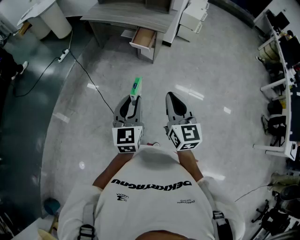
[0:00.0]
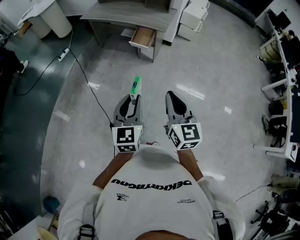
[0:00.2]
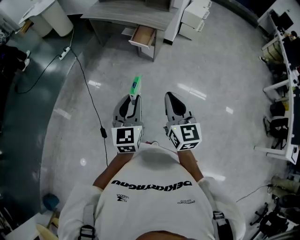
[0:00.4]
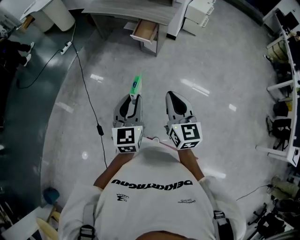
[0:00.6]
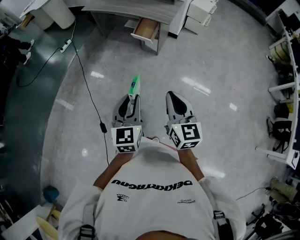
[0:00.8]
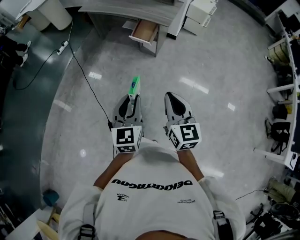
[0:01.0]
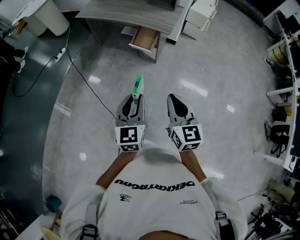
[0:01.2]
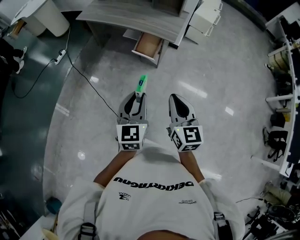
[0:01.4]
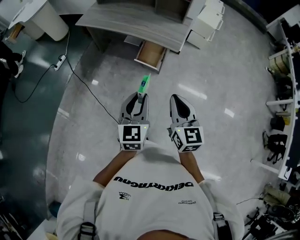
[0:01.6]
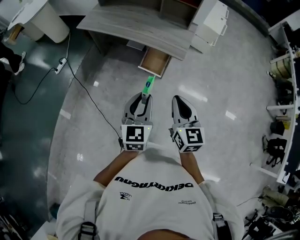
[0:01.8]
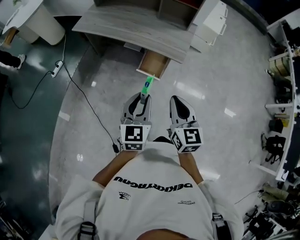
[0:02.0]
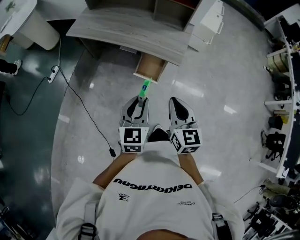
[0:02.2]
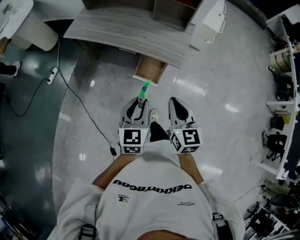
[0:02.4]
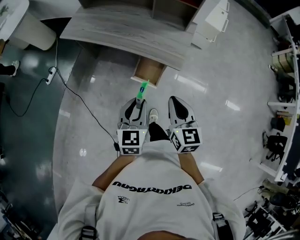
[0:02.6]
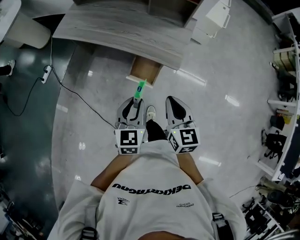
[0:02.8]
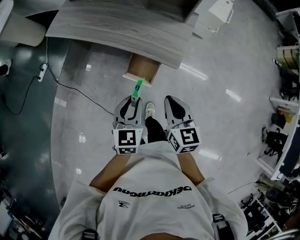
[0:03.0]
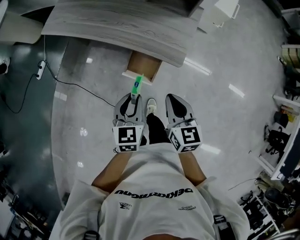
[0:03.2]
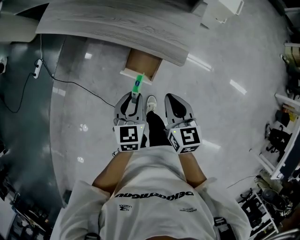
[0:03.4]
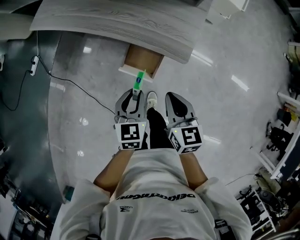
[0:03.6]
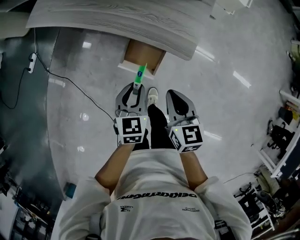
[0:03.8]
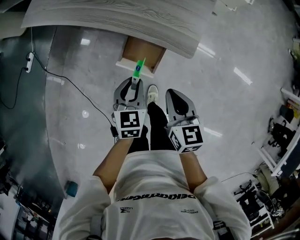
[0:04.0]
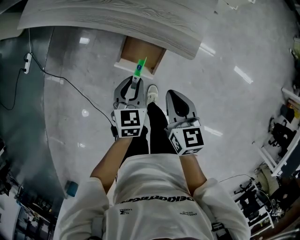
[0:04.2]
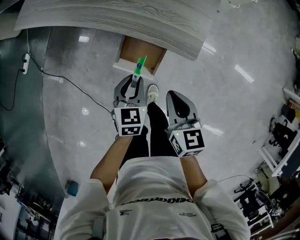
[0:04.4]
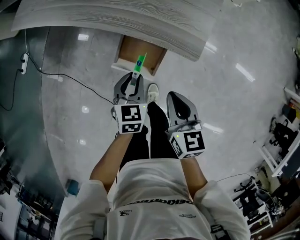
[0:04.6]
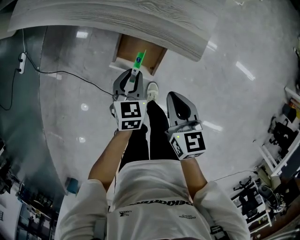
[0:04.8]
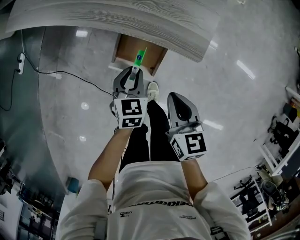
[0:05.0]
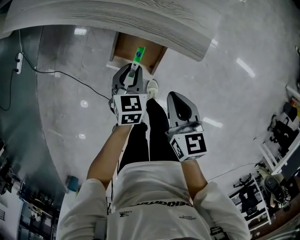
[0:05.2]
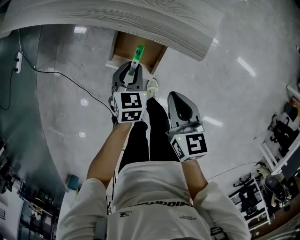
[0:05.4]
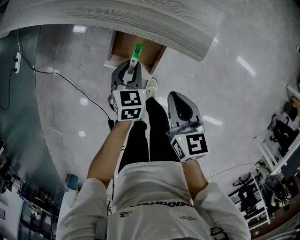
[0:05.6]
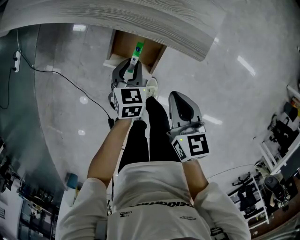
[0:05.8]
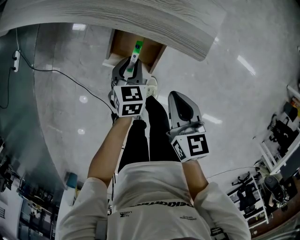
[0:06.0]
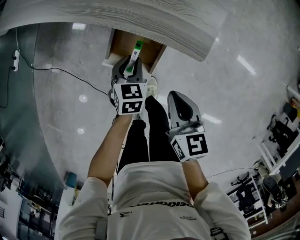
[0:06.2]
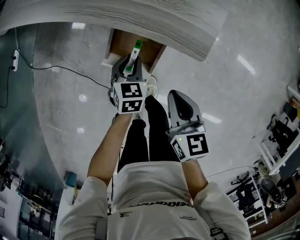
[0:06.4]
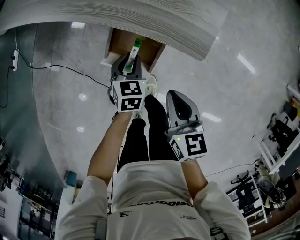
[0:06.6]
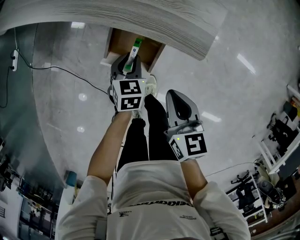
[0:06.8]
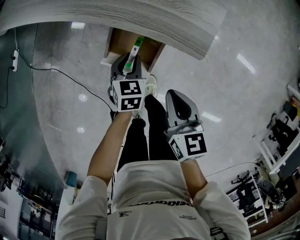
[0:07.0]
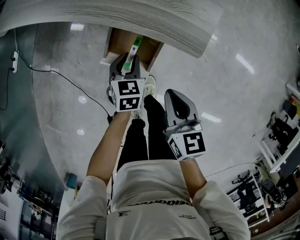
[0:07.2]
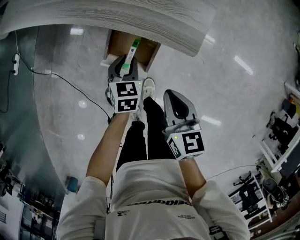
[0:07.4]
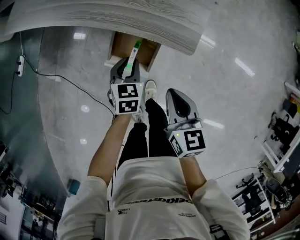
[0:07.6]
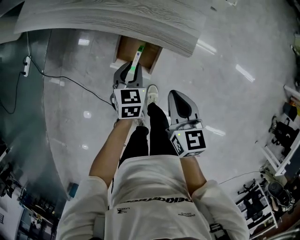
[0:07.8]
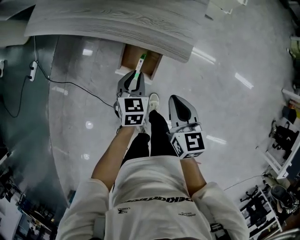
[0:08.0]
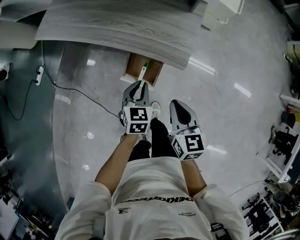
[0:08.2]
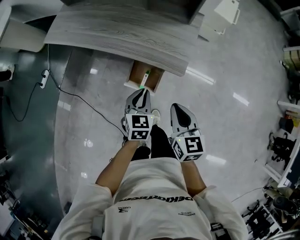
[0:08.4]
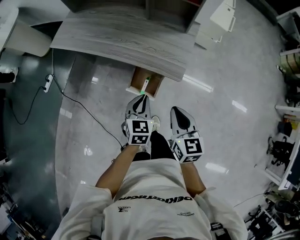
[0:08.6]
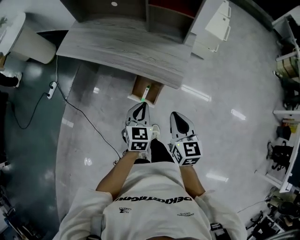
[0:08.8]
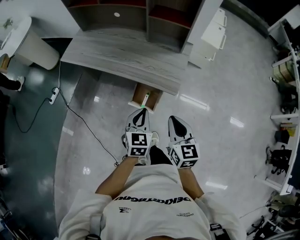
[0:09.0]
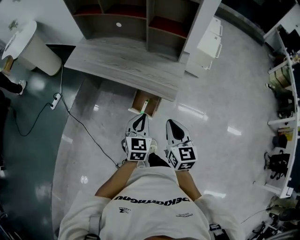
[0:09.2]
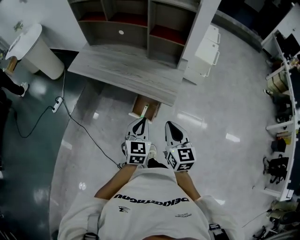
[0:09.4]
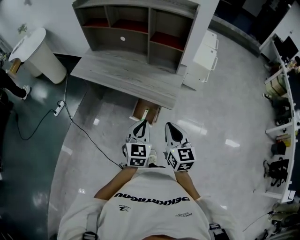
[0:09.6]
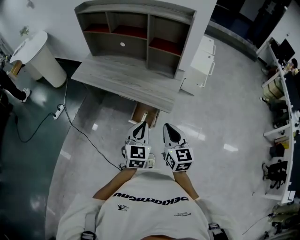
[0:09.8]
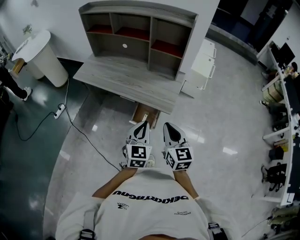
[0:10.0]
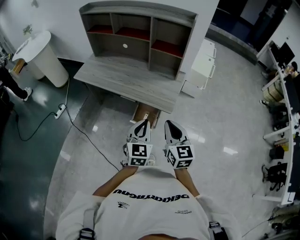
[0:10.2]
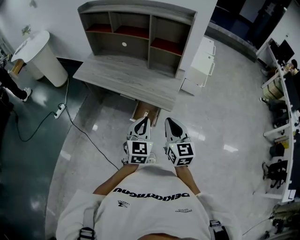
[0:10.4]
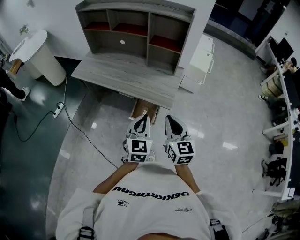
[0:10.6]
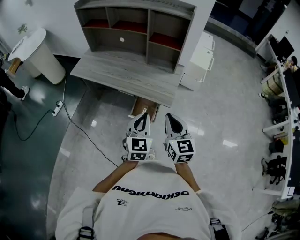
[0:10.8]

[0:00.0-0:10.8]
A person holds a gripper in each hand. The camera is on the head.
0:00.0 to 0:01.6: The two grippers go about 30 cm forward.
0:01.6 to 0:03.0: Both grippers travel together forward and downward, roughly 30 cm.
0:03.0 to 0:04.6: Both grippers travel together downward, approximately 20 cm.
0:04.6 to 0:06.2: The left gripper heads downward, covering approximately 10 cm.
0:06.2 to 0:07.8: Both grippers travel together upward, approximately 10 cm.
0:07.8 to 0:09.2: Both grippers travel together upward, approximately 25 cm.
0:09.2 to 0:10.8: Both grippers travel together upward, some 10 cm.

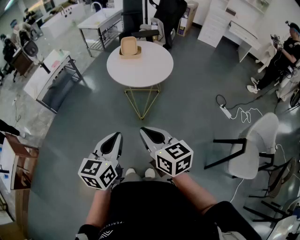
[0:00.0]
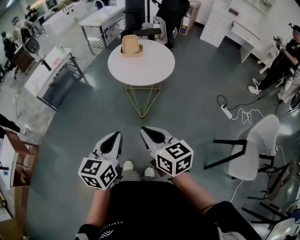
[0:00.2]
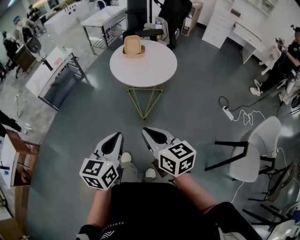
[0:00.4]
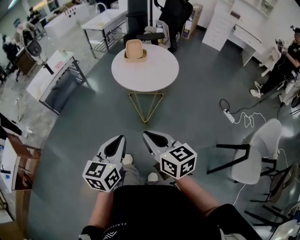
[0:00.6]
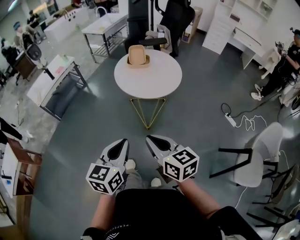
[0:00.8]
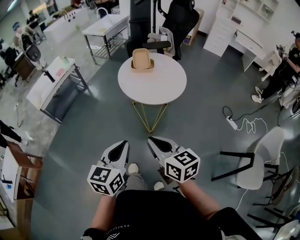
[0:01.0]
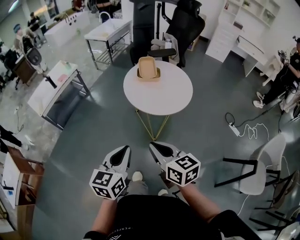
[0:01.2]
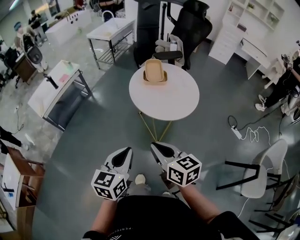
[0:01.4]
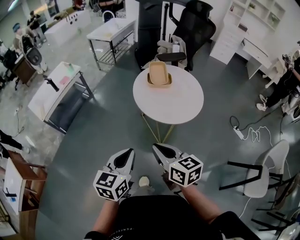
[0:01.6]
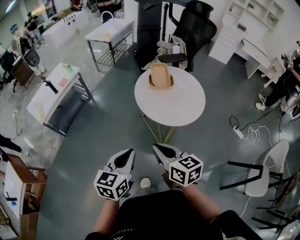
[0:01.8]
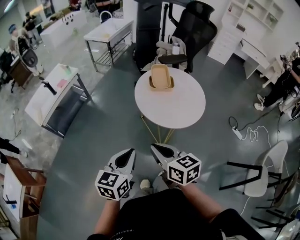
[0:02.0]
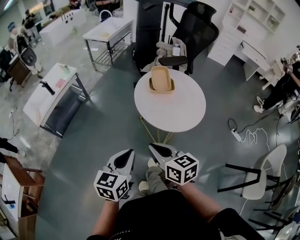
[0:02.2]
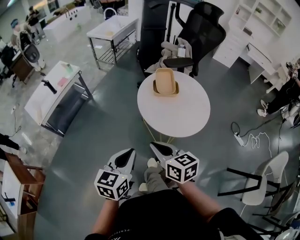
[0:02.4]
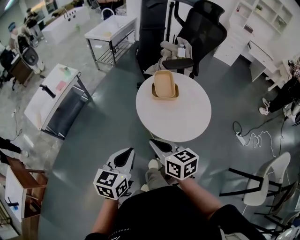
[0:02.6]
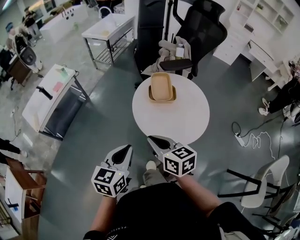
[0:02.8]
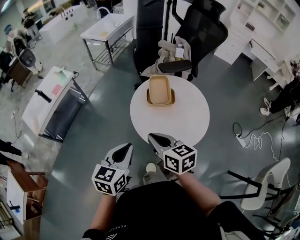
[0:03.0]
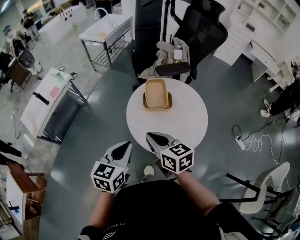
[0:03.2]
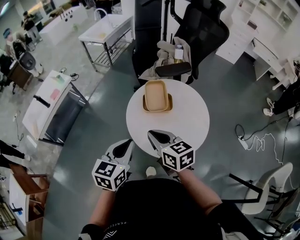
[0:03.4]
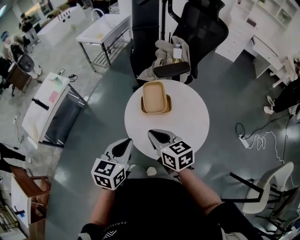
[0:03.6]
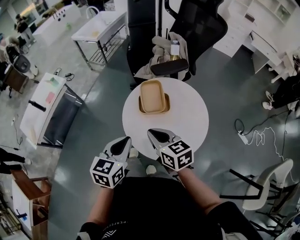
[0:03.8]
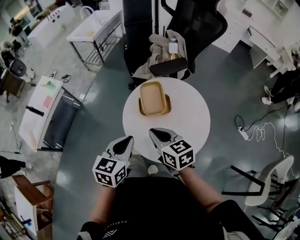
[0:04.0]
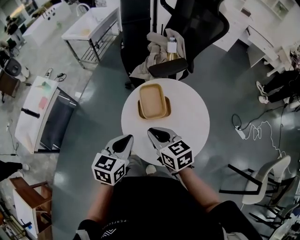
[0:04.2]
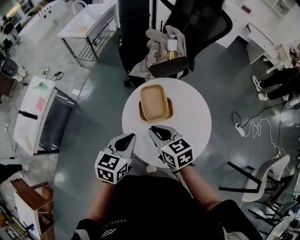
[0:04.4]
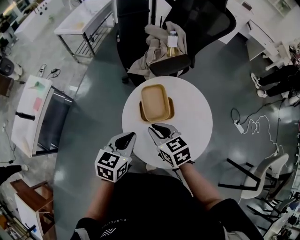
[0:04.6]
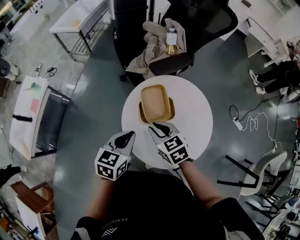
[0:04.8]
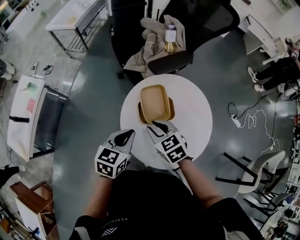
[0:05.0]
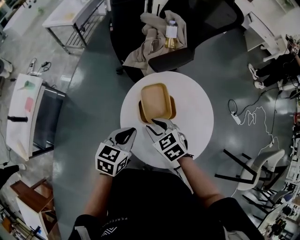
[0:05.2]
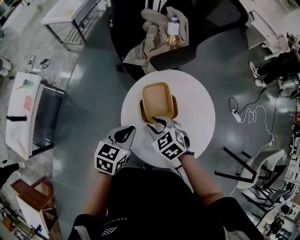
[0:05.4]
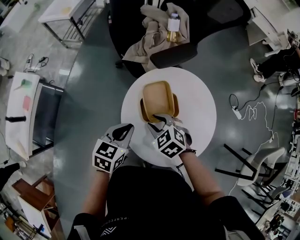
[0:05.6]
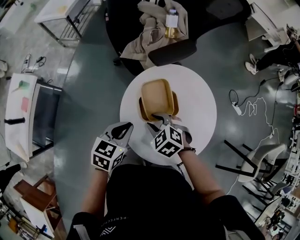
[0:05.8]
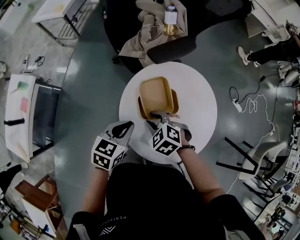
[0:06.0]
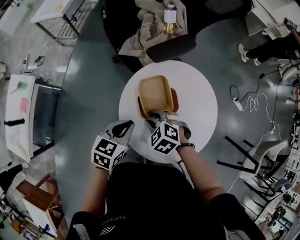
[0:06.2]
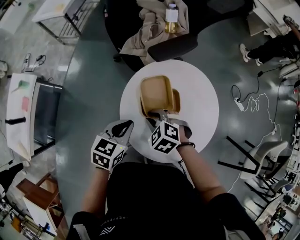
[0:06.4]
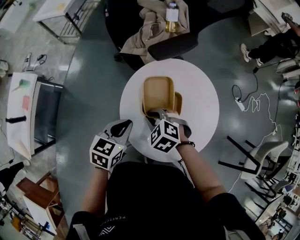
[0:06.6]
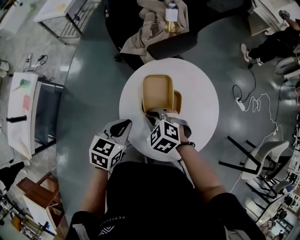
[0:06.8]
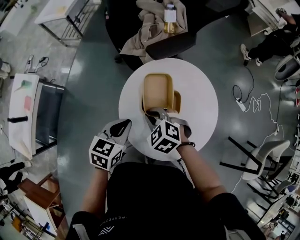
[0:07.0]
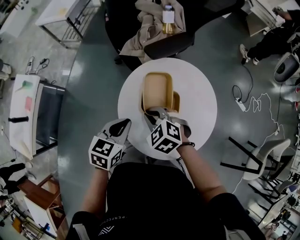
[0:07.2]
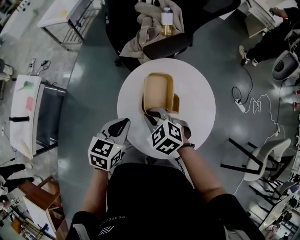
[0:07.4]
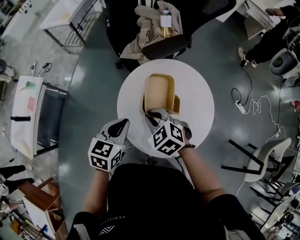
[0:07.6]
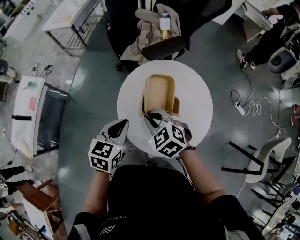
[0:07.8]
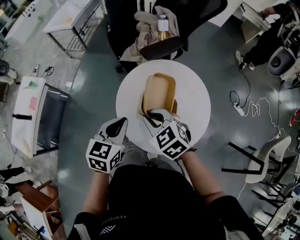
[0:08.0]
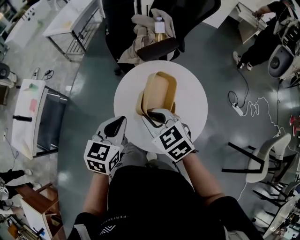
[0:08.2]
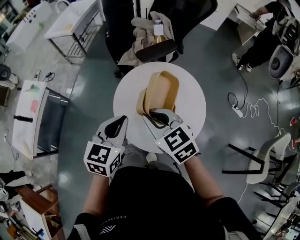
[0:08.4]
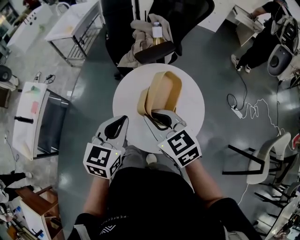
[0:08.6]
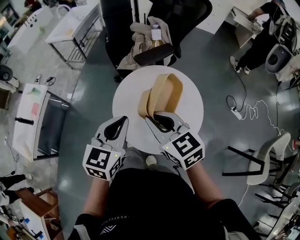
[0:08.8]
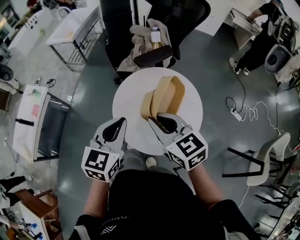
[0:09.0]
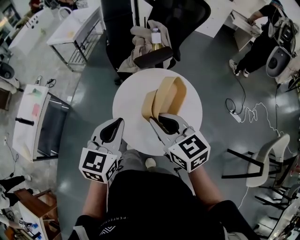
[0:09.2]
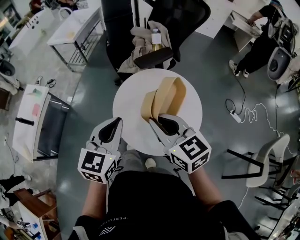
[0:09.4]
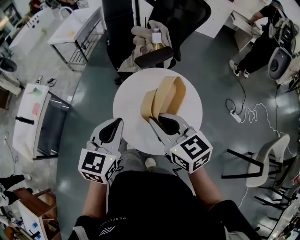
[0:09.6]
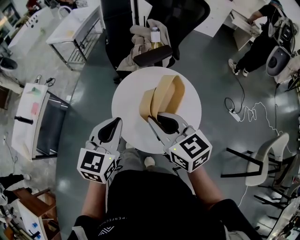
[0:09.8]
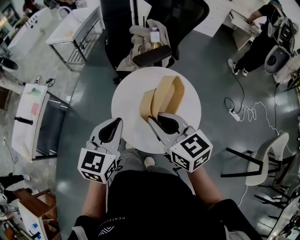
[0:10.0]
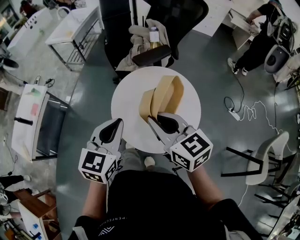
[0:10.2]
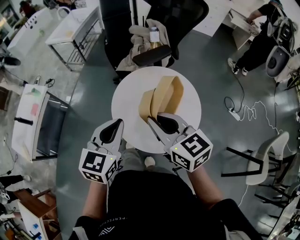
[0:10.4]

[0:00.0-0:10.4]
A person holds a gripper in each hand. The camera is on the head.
0:00.0 to 0:01.4: The two grippers go about 20 cm forward and to the left.
0:01.4 to 0:03.0: Both grippers travel together forward, some 25 cm.
0:03.0 to 0:04.4: The two grippers go approximately 20 cm forward.
0:04.4 to 0:06.0: The grippers both shift downward and forward by roughly 15 cm. The right gripper angles its fingers downward, by approximately 30 degrees, and opens.
0:06.0 to 0:07.4: The right gripper heads upward, covering about 5 cm, and closes.
0:07.4 to 0:09.0: The two grippers go approximately 20 cm upward and backward. The left gripper swivels about 20 degrees. Meanwhile the right gripper tips its fingers upward by roughly 30 degrees.
0:09.0 to 0:10.4: The grippers stay close to where they were, moving slightly.

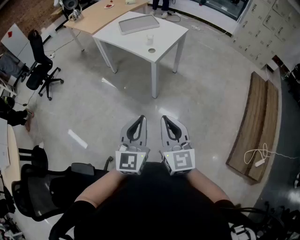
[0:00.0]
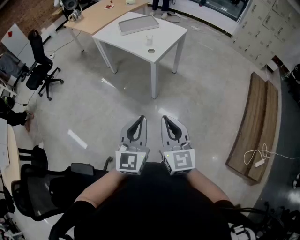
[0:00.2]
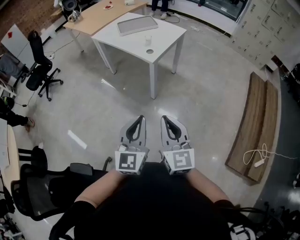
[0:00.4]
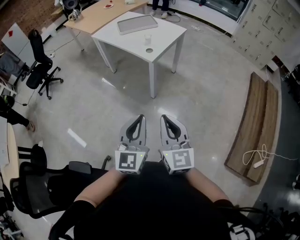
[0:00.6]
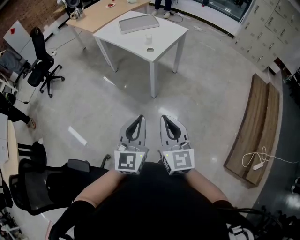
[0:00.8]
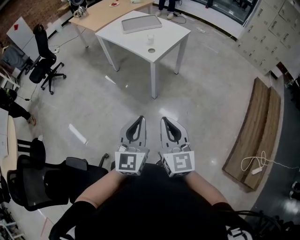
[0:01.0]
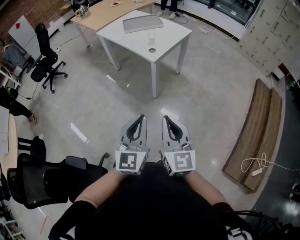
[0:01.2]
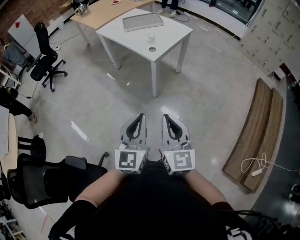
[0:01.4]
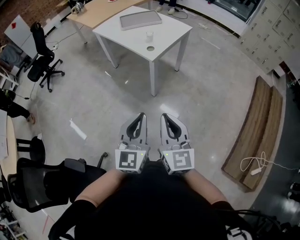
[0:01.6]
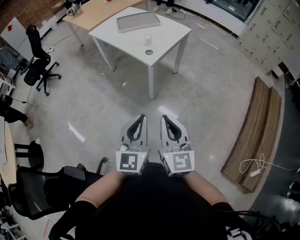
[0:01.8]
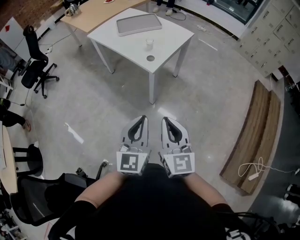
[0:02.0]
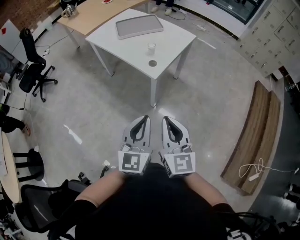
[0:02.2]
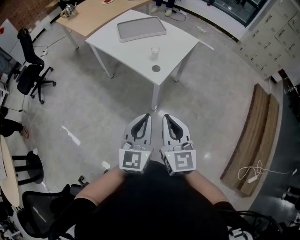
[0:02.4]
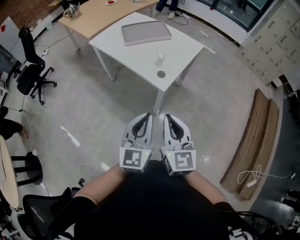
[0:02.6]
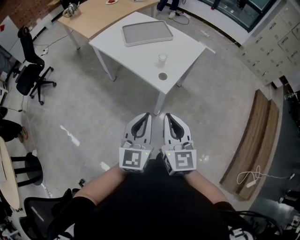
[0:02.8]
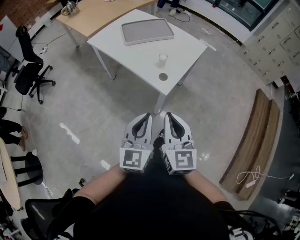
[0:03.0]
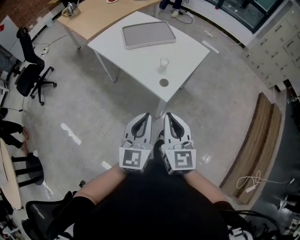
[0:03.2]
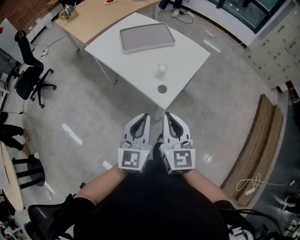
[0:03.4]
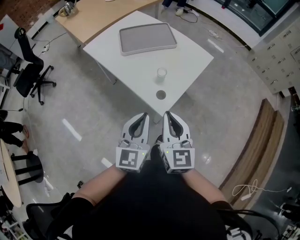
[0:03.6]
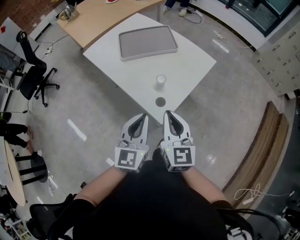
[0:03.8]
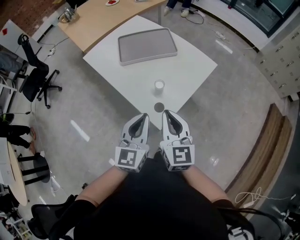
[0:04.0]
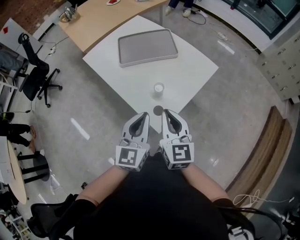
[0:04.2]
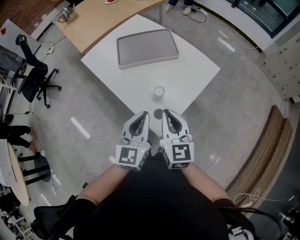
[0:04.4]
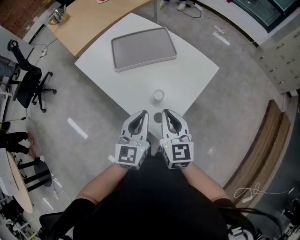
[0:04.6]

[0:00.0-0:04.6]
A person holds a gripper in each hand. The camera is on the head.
0:00.0 to 0:01.6: The grippers both shift to the right by approximately 5 cm.
0:01.6 to 0:03.0: The two grippers go some 35 cm forward.
0:03.0 to 0:04.6: The two grippers go roughly 35 cm forward.
